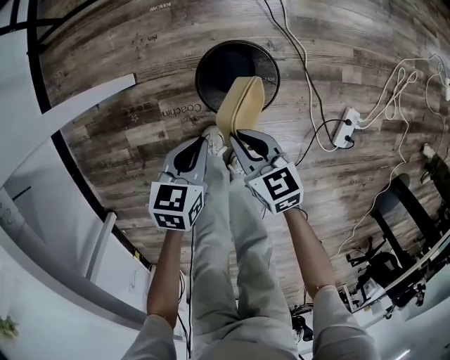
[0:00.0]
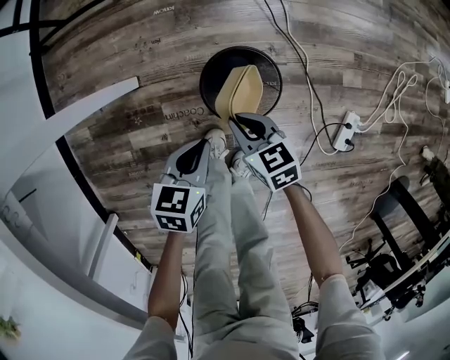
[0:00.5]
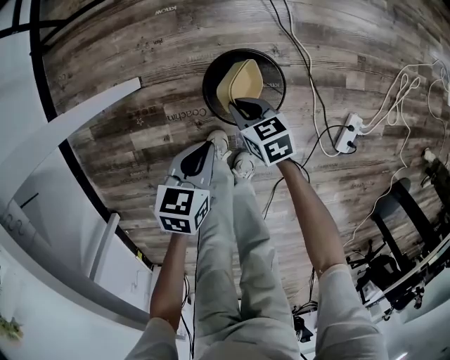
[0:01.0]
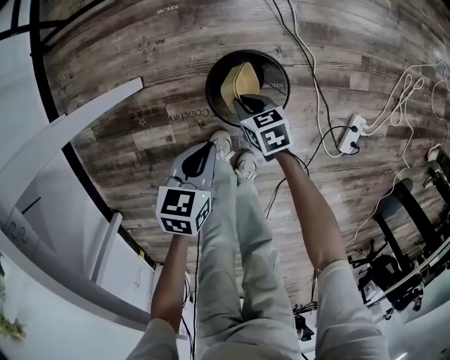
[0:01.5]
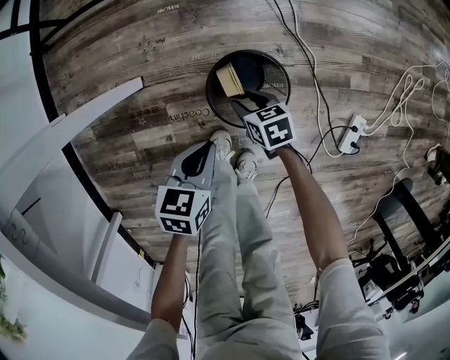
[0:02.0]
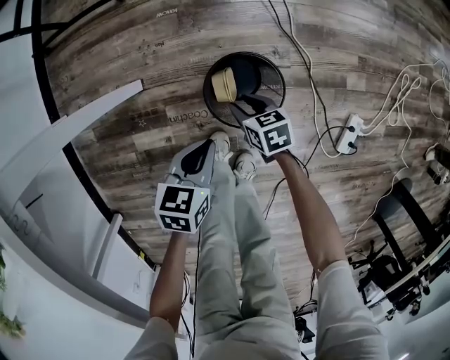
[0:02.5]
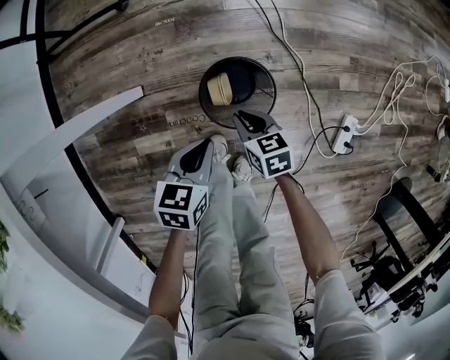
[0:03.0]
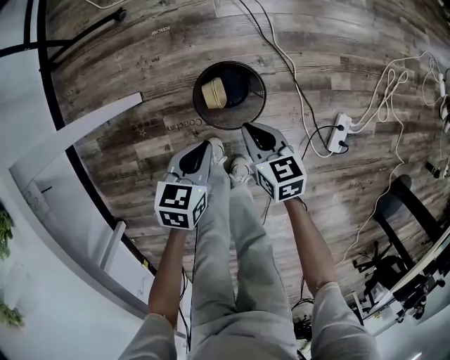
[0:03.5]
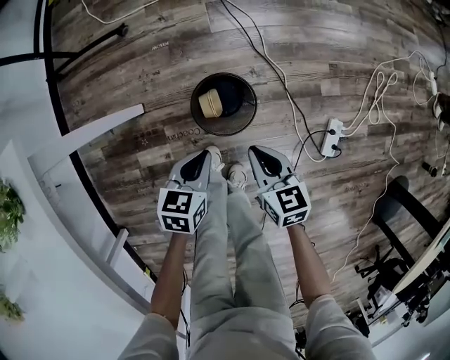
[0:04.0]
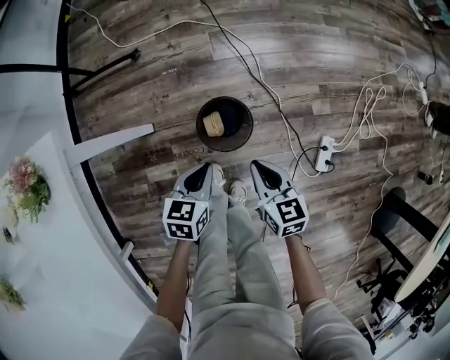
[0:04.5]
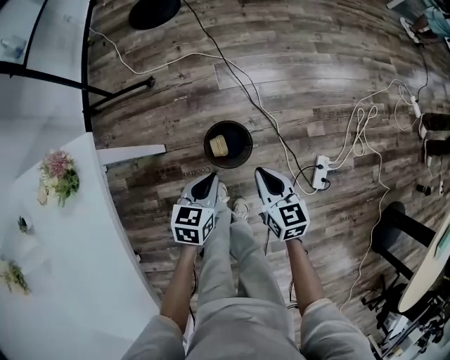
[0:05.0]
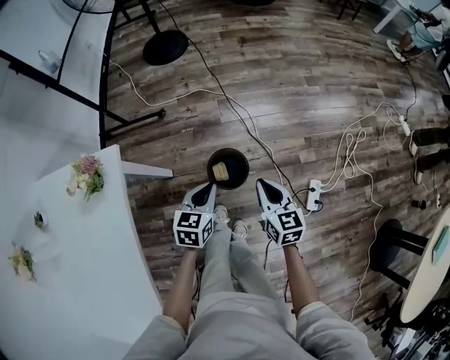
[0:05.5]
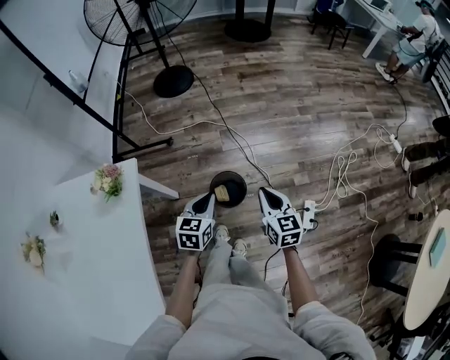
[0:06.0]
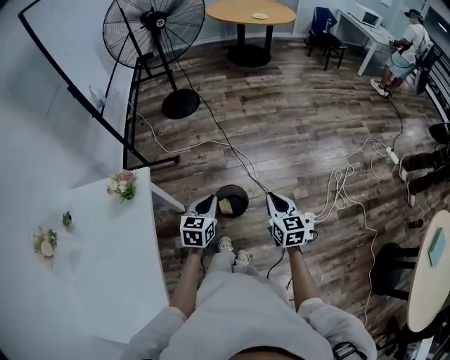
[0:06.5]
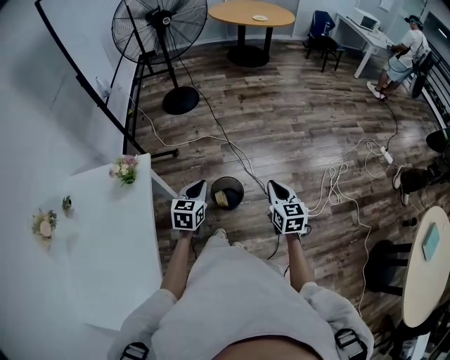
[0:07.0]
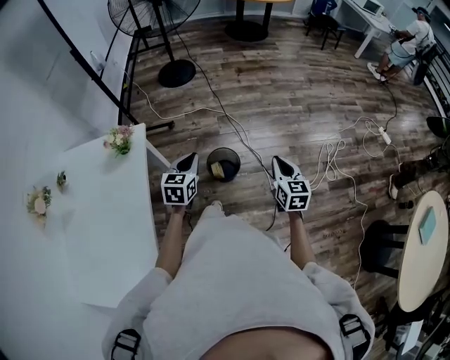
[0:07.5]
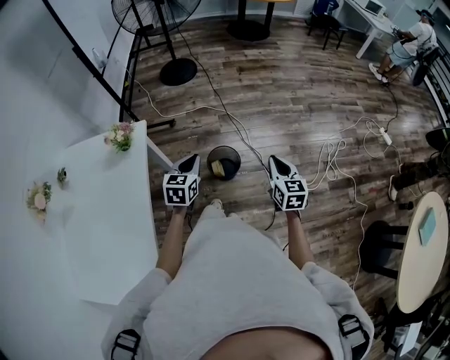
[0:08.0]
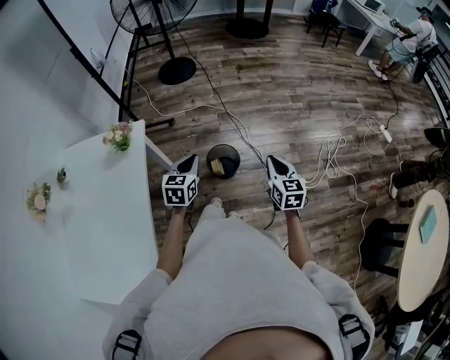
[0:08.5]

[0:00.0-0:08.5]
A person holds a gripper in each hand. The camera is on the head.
0:00.0 to 0:02.0: The right gripper is displaced downward and forward by approximately 15 cm, and opens its fingers.
0:02.0 to 0:04.0: The right gripper moves upward, roughly 25 cm, turns by some 30 degrees, and closes, while the left gripper travels upward by about 10 cm.
0:04.0 to 0:06.5: Both grippers move upward, approximately 40 cm. The right gripper turns by some 20 degrees; the left gripper rotates approximately 20 degrees.
0:06.5 to 0:08.5: The grippers both shift backward by some 5 cm.

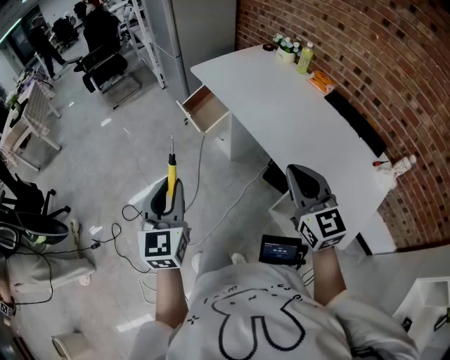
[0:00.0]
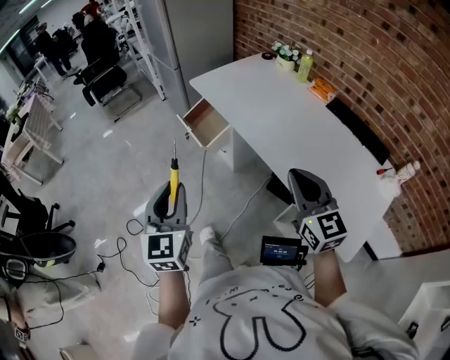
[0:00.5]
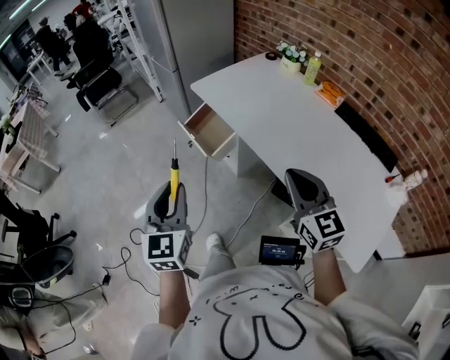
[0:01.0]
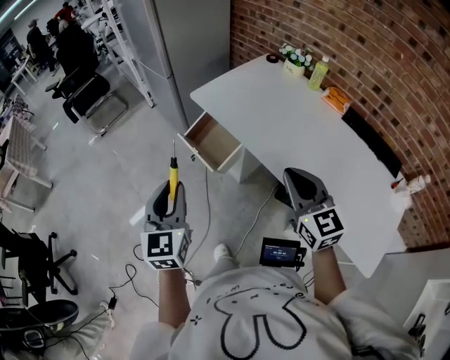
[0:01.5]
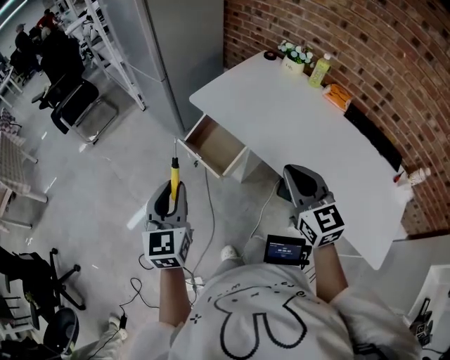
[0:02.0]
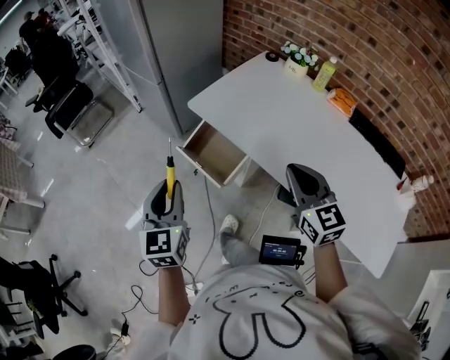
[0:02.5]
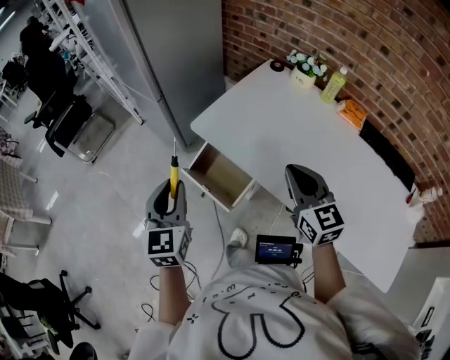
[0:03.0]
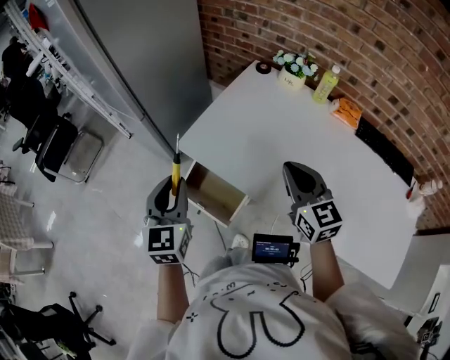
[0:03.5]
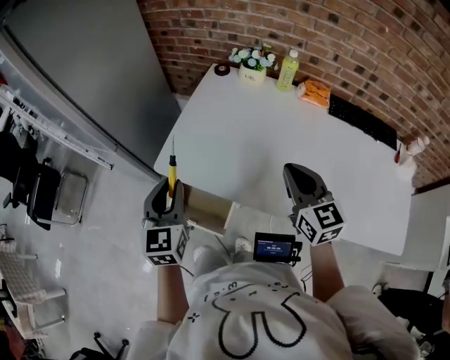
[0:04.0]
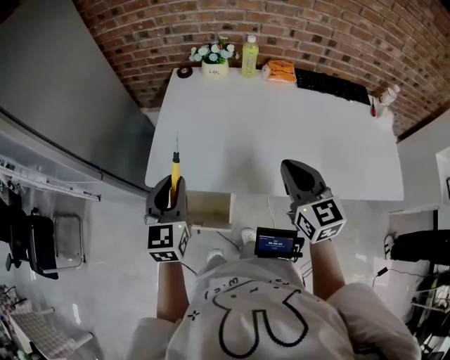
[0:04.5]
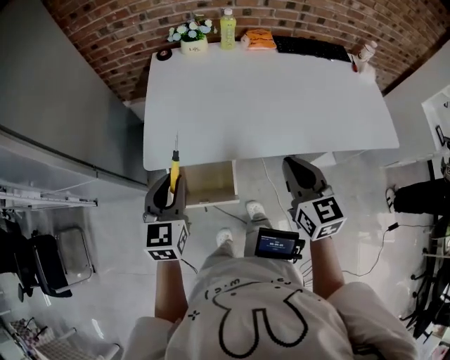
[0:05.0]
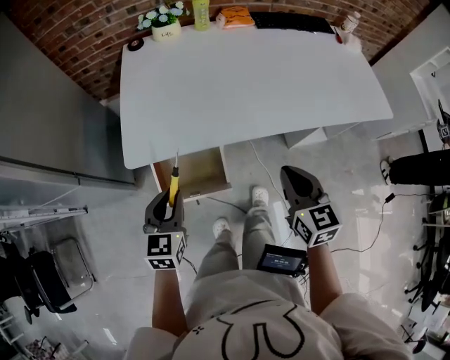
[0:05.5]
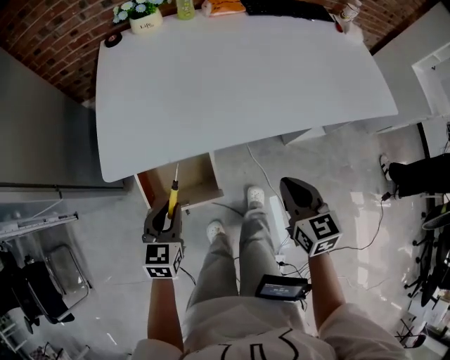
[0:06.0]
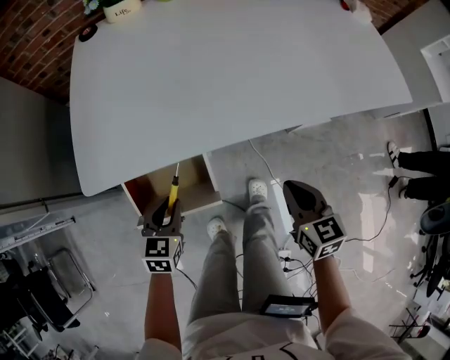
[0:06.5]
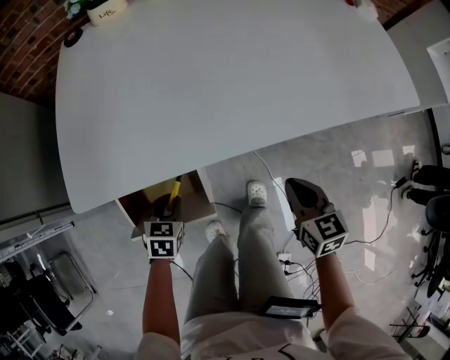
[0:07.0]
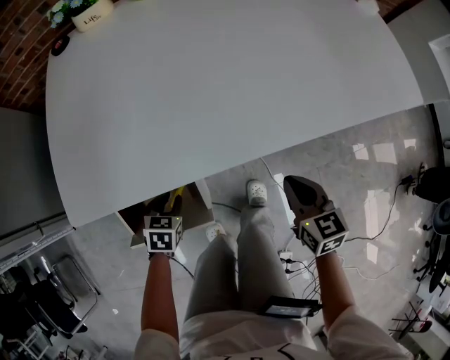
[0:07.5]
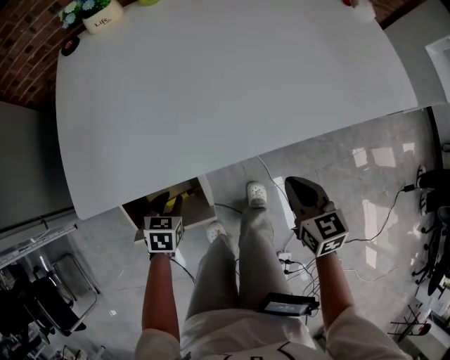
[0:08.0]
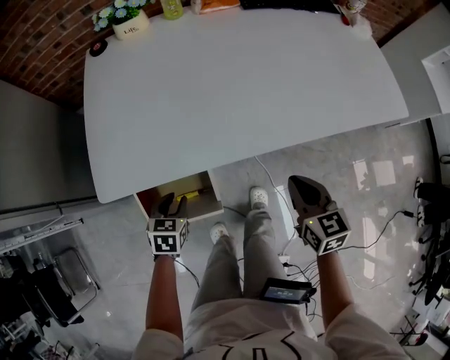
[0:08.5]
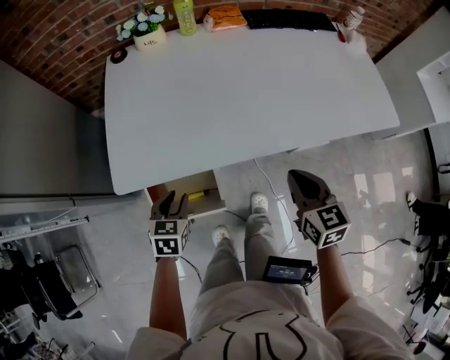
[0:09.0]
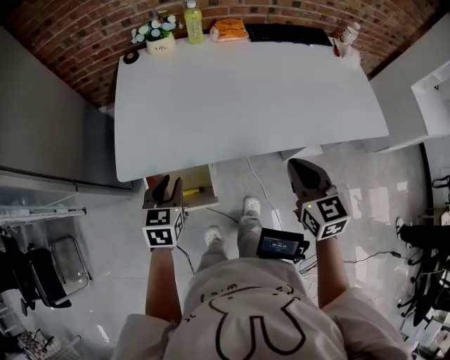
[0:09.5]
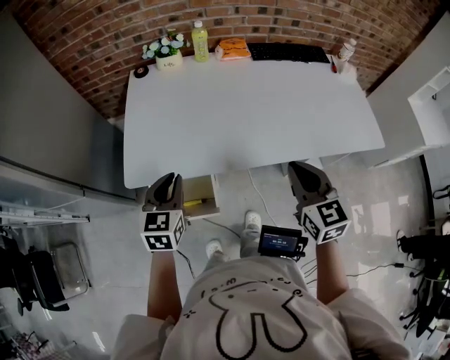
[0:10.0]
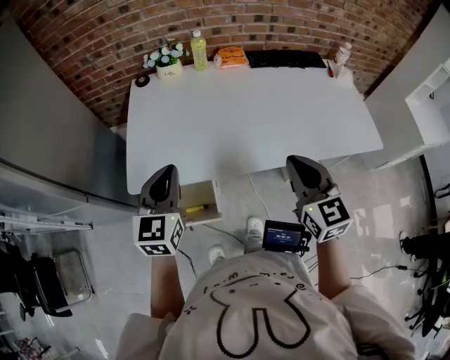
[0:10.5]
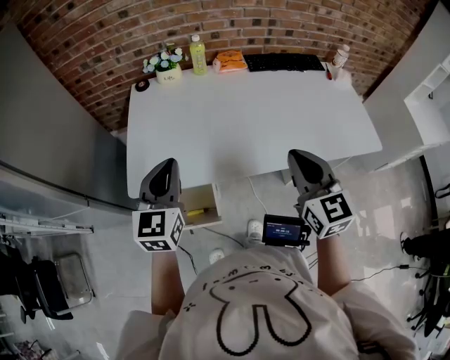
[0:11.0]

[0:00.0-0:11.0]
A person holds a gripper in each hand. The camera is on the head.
0:00.0 to 0:02.0: The right gripper shifts roughly 30 cm forward and to the left; the left gripper is displaced forward by about 35 cm.
0:02.0 to 0:03.5: The two grippers go roughly 25 cm forward.
0:03.5 to 0:05.5: The right gripper changes place by roughly 25 cm, and rotates some 50 degrees. The left gripper goes approximately 15 cm downward, and rotates approximately 50 degrees.
0:05.5 to 0:07.5: The left gripper moves downward, approximately 30 cm, and tips its fingers downward by approximately 30 degrees; the right gripper shifts roughly 25 cm downward and to the right.
0:07.5 to 0:09.0: The two grippers go some 20 cm upward.
0:09.0 to 0:11.0: The two grippers go approximately 25 cm upward. The right gripper swivels about 20 degrees. The left gripper tips its fingers upward by approximately 40 degrees, and closes up.

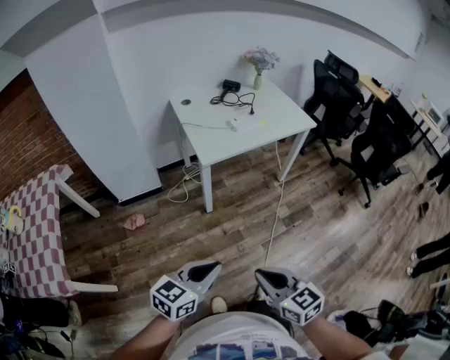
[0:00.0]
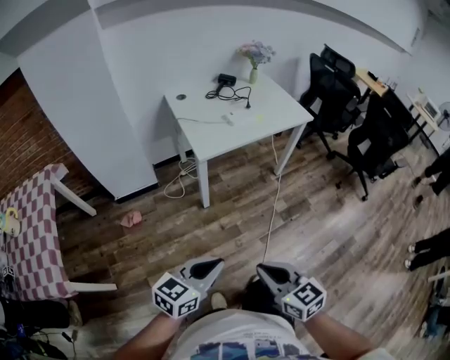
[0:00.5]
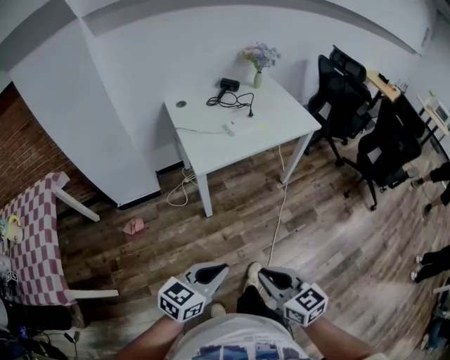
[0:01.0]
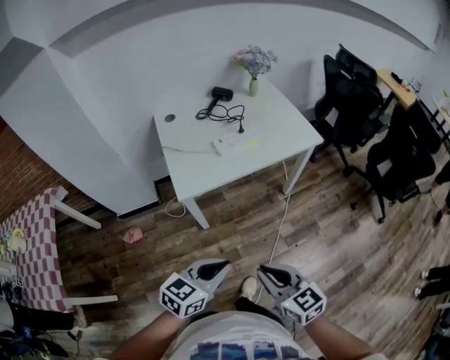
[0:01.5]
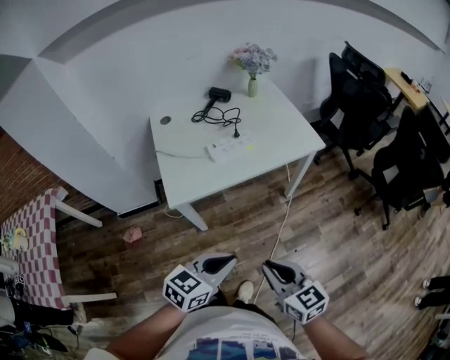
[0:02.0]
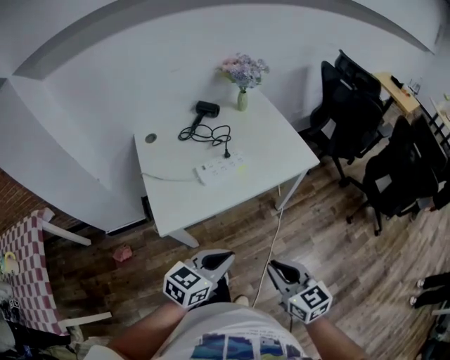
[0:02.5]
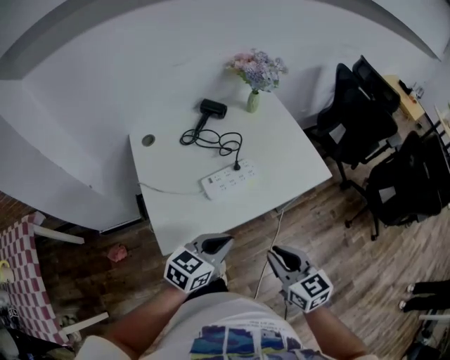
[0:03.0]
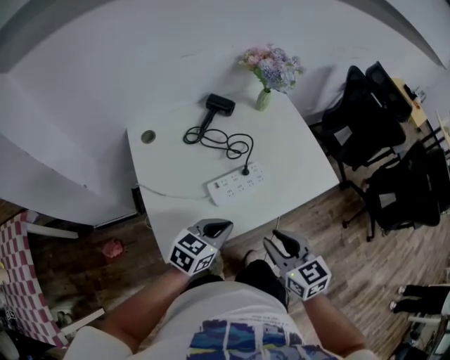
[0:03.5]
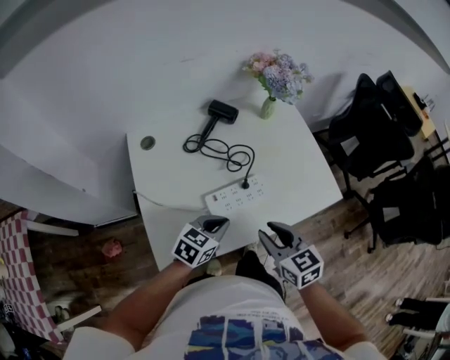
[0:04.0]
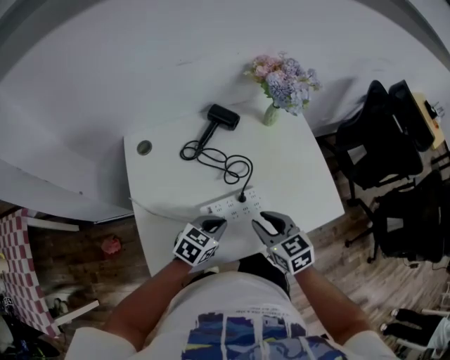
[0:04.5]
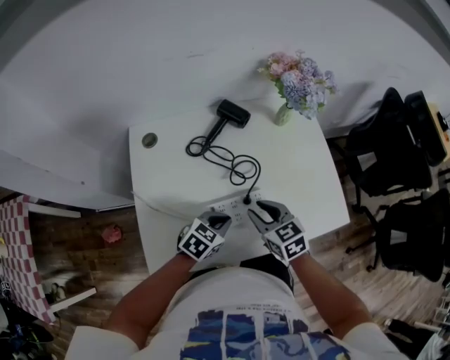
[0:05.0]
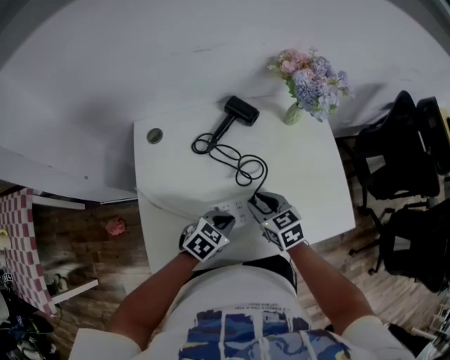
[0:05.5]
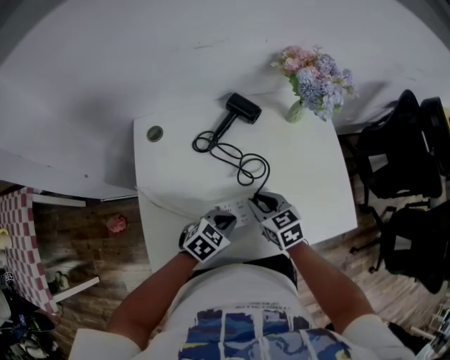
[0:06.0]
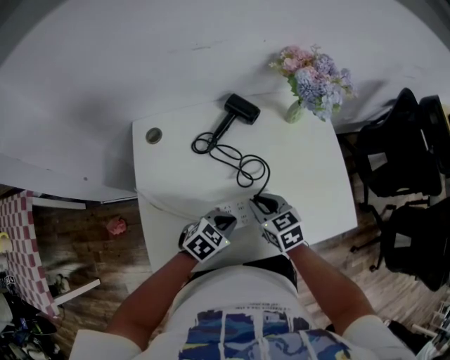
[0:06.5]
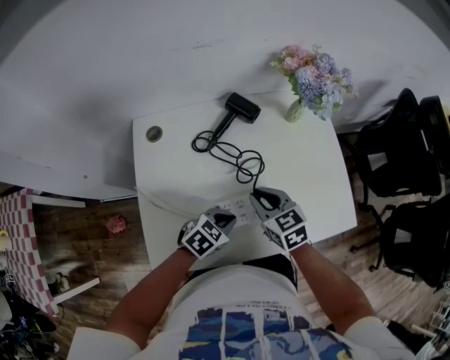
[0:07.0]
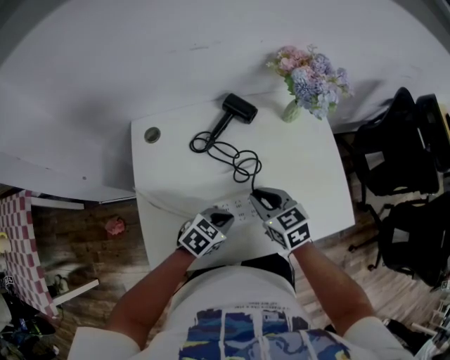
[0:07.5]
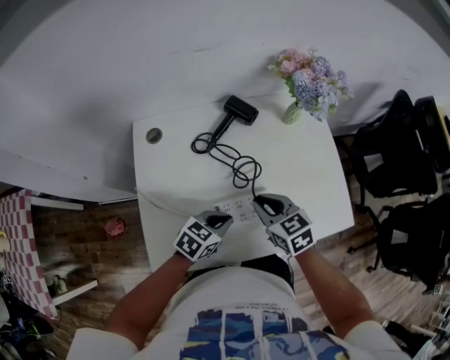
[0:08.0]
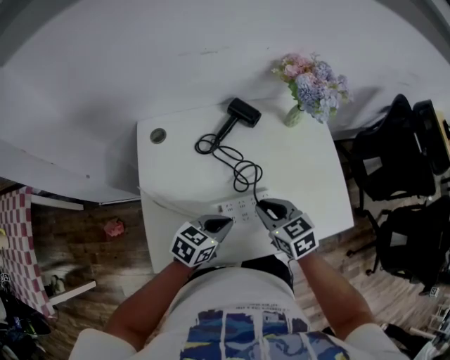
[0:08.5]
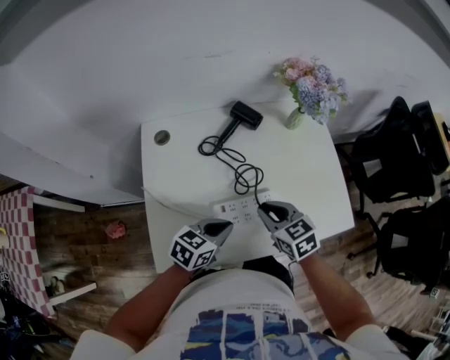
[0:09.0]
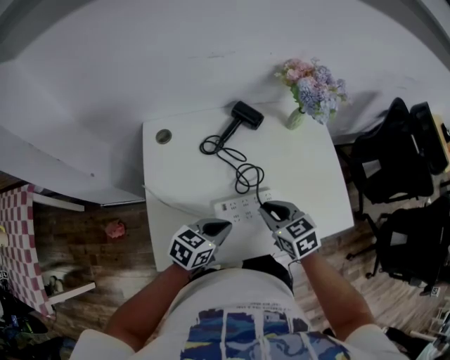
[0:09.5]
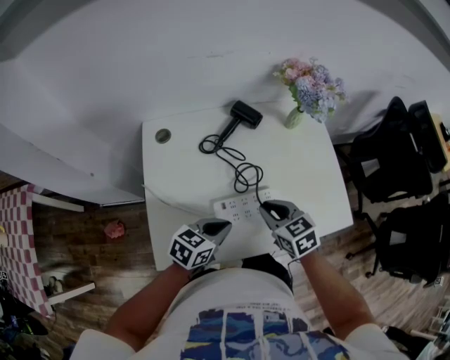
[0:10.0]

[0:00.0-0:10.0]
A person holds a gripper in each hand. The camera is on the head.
0:00.0 to 0:02.0: Both grippers move forward and to the right, roughly 40 cm.
0:02.0 to 0:04.0: Both grippers are carried forward, approximately 40 cm.
0:04.0 to 0:06.0: The right gripper shifts approximately 20 cm forward and downward. The left gripper goes approximately 10 cm forward and downward.
0:06.0 to 0:08.0: The right gripper moves upward, about 5 cm.
0:08.0 to 0:10.0: The left gripper ends up roughly 5 cm from where it was.
